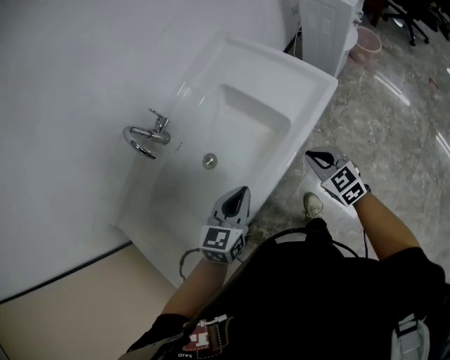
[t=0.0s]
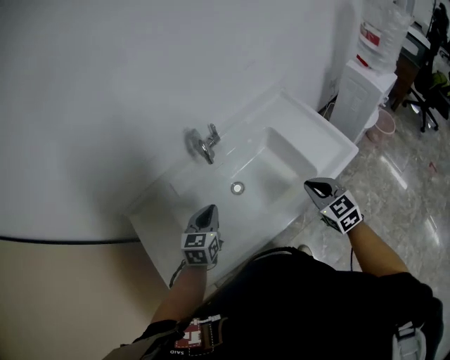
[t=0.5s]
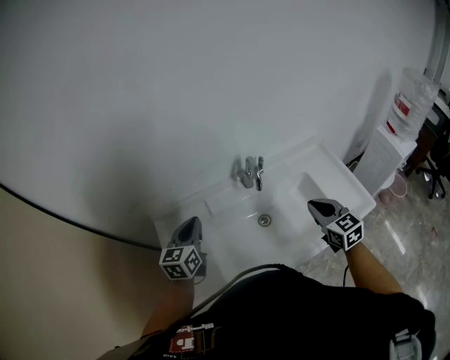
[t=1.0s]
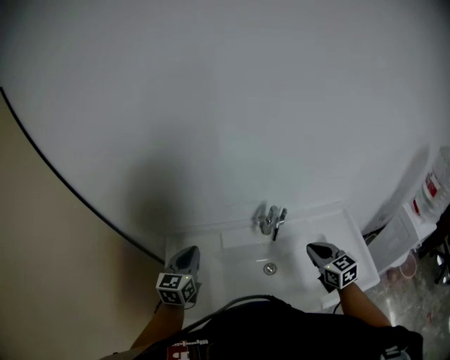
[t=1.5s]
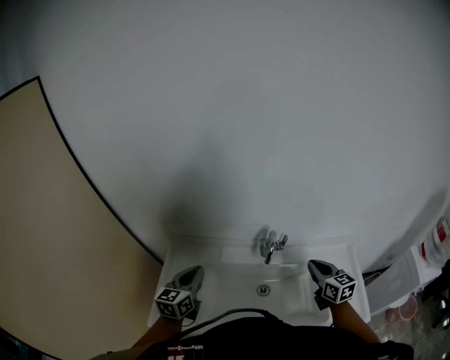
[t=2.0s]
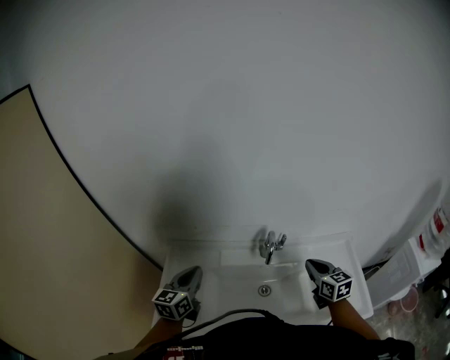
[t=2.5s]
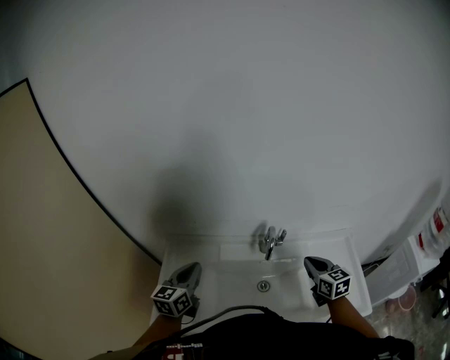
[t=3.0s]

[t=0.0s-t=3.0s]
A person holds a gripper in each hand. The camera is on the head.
t=0.0s to t=1.5s: The right gripper moves roughly 40 cm, and turns by approximately 30 degrees. The left gripper shifts by approximately 50 cm, and changes its angle by roughly 50 degrees.
t=1.5s to t=3.0s: The right gripper shifts by approximately 5 cm.

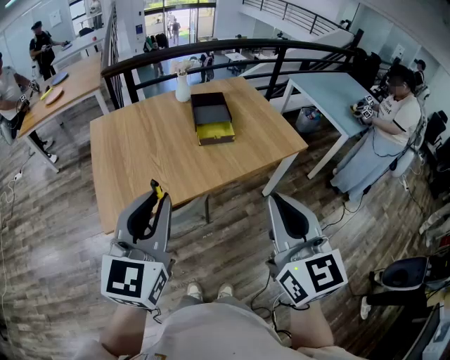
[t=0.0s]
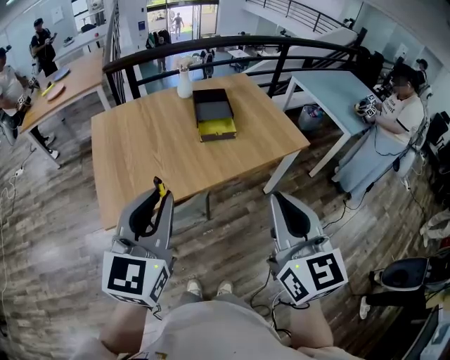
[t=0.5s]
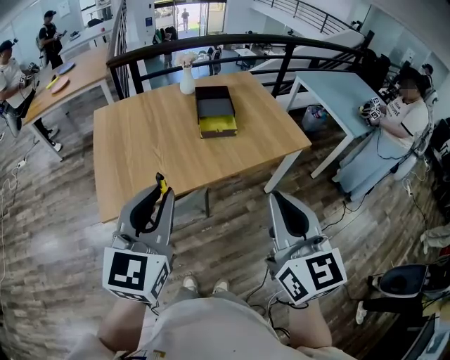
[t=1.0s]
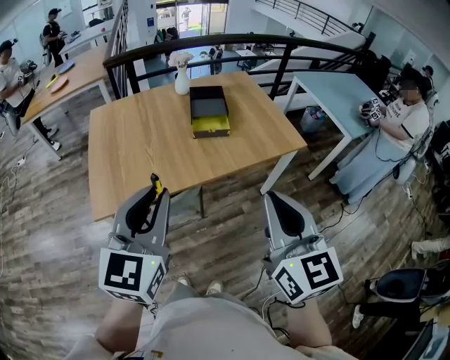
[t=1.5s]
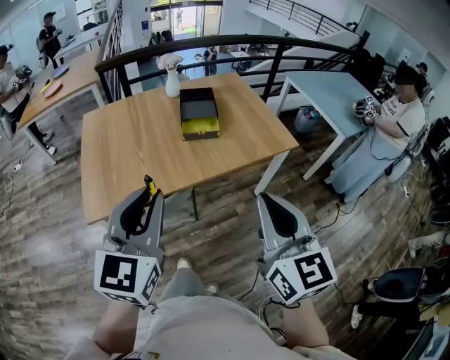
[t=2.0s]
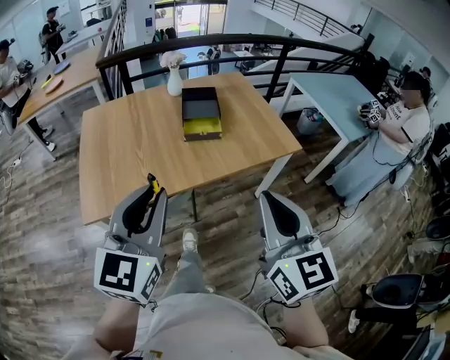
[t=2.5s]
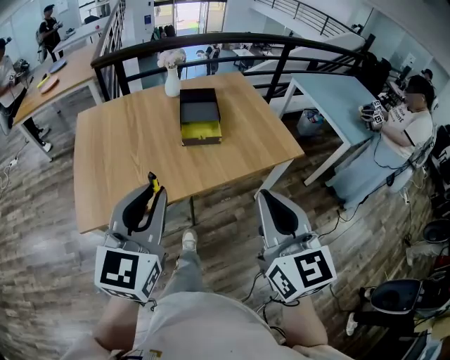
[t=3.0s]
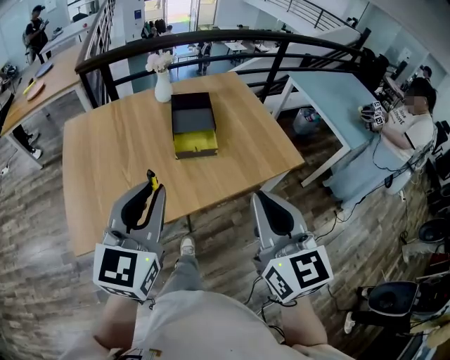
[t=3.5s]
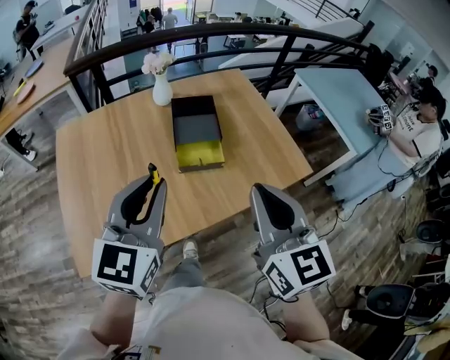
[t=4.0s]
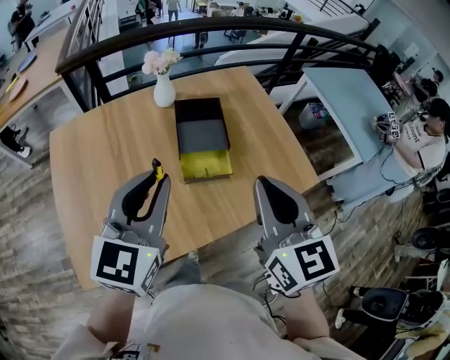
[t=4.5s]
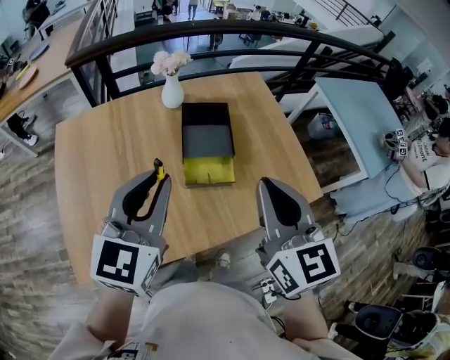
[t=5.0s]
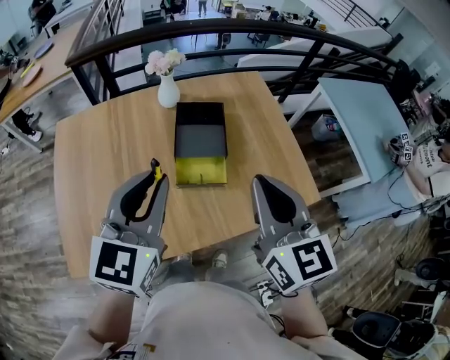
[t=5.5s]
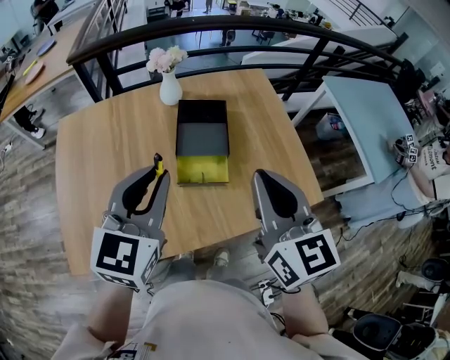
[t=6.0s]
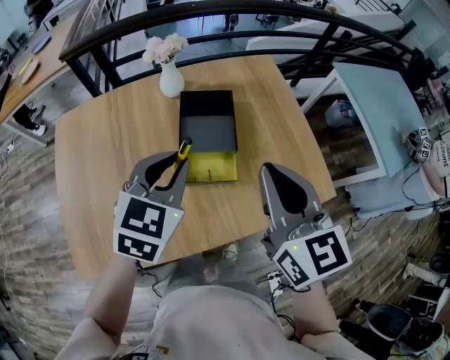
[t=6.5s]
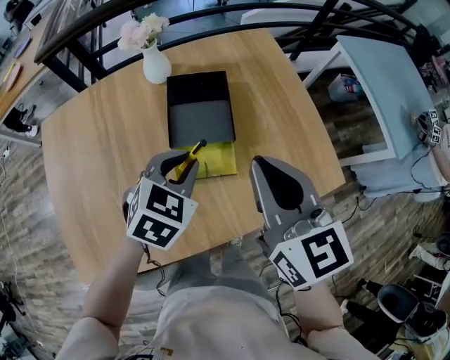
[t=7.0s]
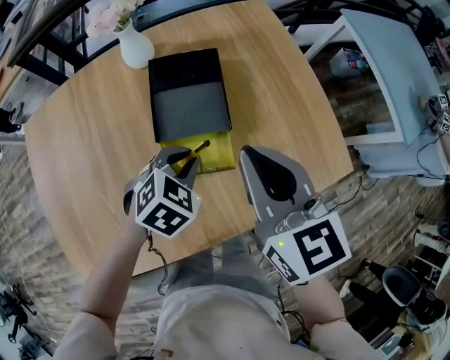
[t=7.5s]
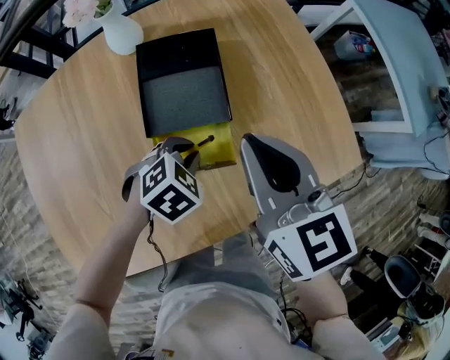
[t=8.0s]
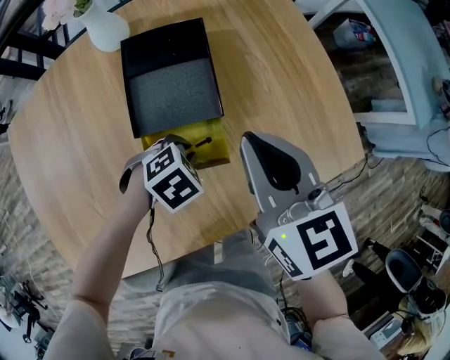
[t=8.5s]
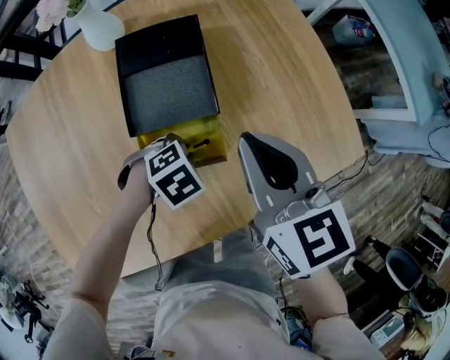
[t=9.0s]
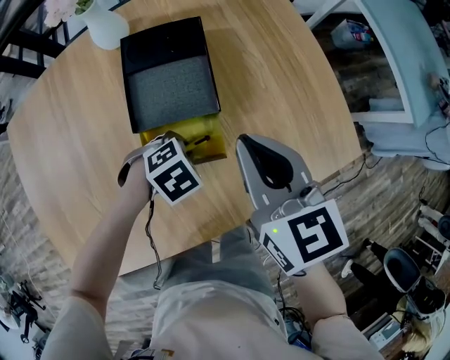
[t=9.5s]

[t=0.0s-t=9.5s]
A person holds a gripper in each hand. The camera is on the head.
t=0.0s to t=2.0s: The grippers both shift to the right by about 10 cm.
t=2.0s to t=4.0s: The two grippers go some 35 cm forward.
t=4.0s to t=5.5s: Both grippers move forward, roughly 15 cm.
t=5.5s to t=7.5s: The left gripper is displaced downward and forward by approximately 35 cm, and points its fingers roughly 50 degrees further downward, while the right gripper shifts about 25 cm downward and forward.
t=7.5s to t=9.5s: The two grippers go approximately 10 cm downward. The left gripper turns by roughly 30 degrees.

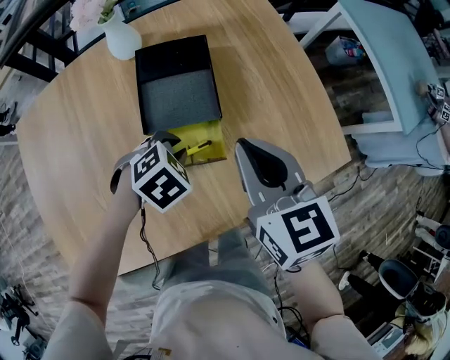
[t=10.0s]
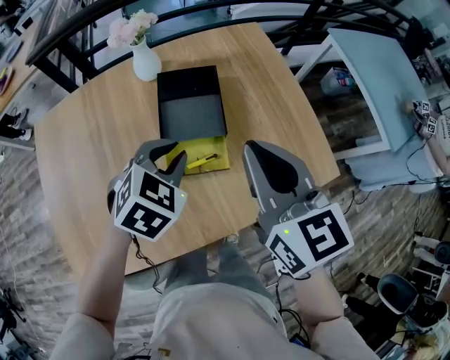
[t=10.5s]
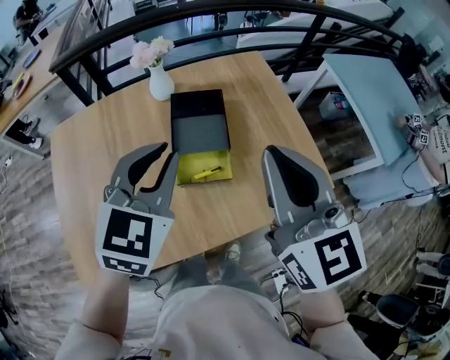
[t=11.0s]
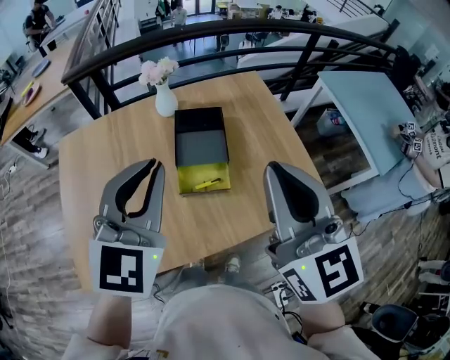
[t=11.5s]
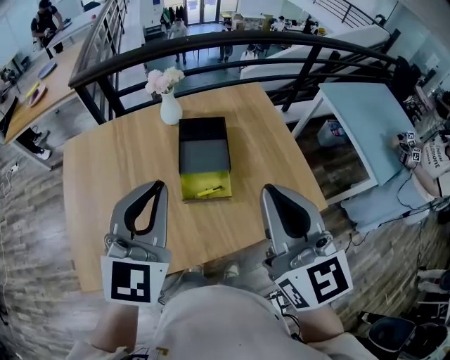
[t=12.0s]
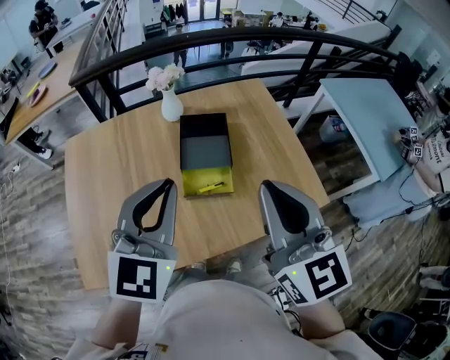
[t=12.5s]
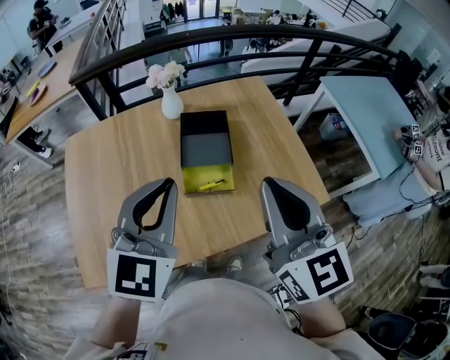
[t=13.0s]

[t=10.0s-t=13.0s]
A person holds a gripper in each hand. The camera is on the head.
t=10.0s to t=11.5s: The left gripper moves upward, roughly 40 cm, and tilts its fingers roughly 60 degrees upward; the right gripper is displaced upward and backward by some 30 cm, and swivels about 30 degrees.
t=11.5s to t=13.0s: The grippers stay close to where they were, moving slightly.

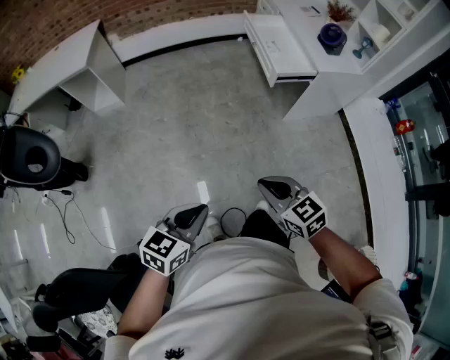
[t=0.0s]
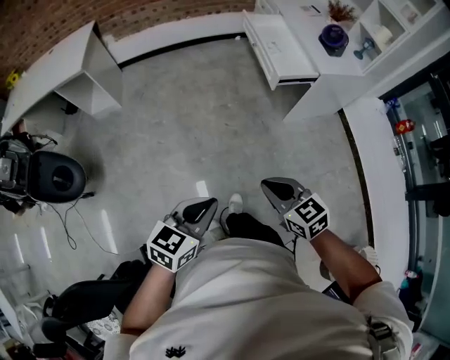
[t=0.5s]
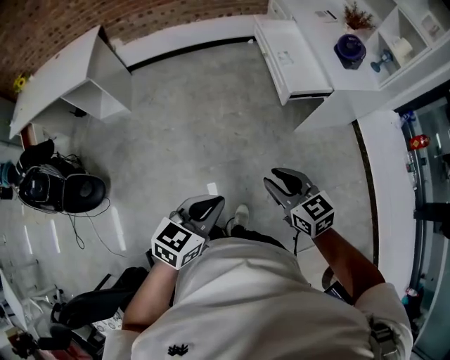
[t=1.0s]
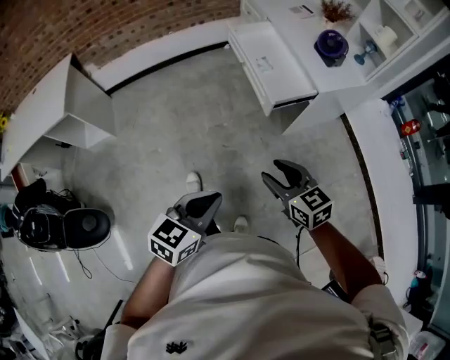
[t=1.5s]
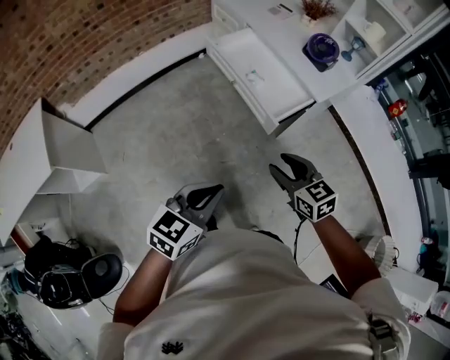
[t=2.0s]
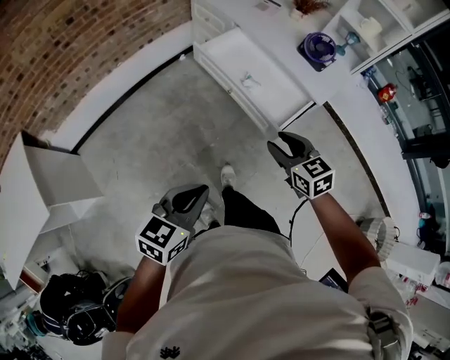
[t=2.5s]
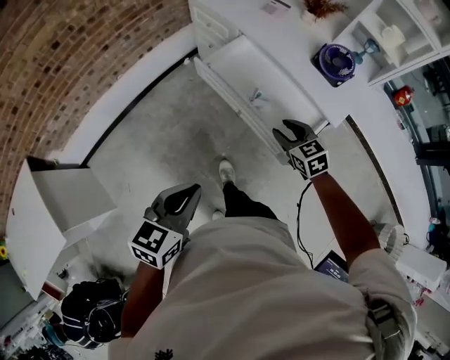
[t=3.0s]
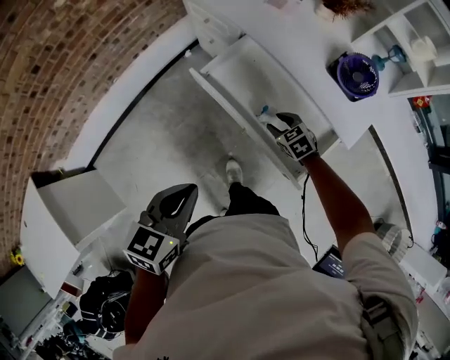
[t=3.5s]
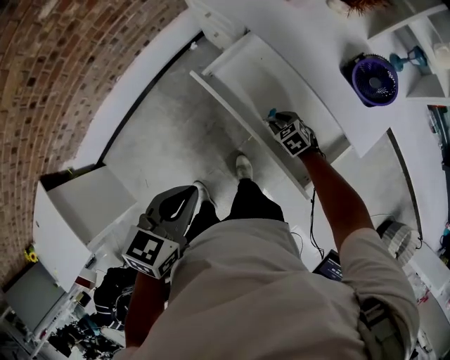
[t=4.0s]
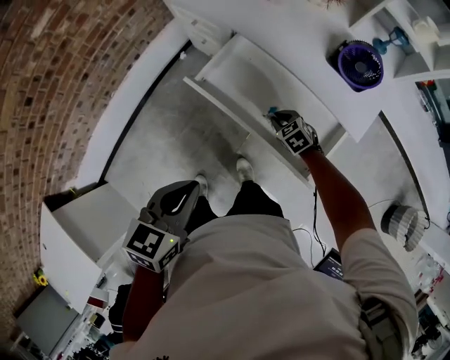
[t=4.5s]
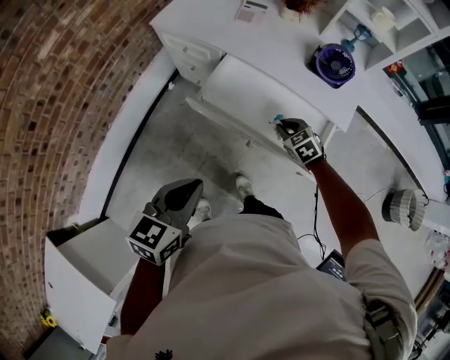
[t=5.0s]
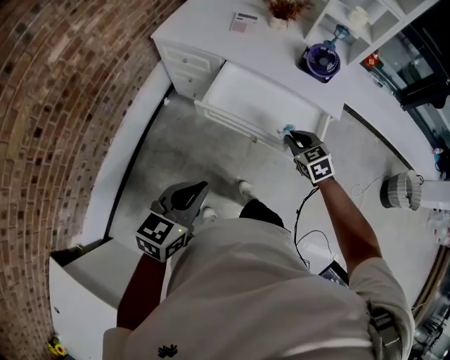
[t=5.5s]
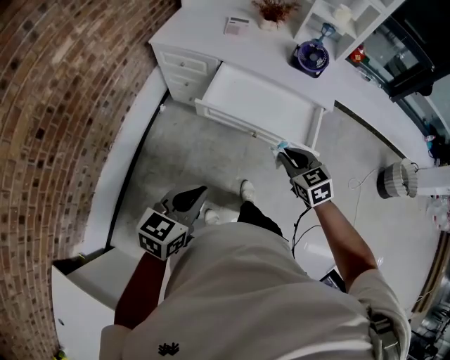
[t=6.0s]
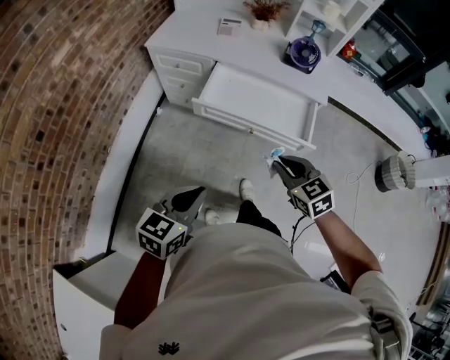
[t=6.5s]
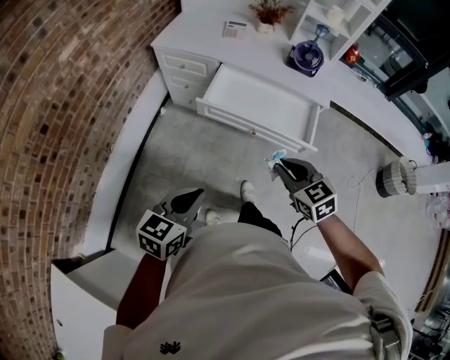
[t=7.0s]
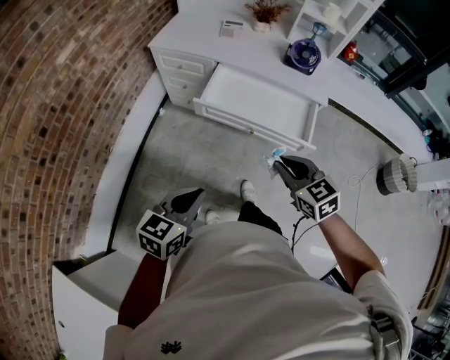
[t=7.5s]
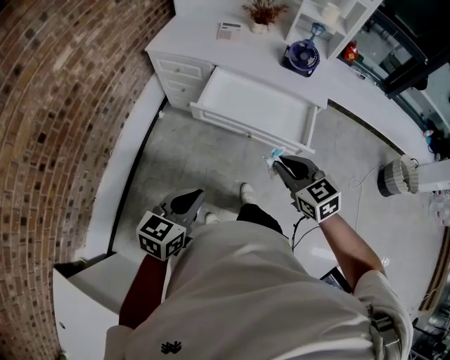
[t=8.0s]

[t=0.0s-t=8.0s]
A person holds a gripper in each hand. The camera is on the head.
t=0.0s to t=2.0s: The pair of grippers is taken roughly 40 cm. The left gripper rotates roughly 30 degrees; the right gripper rotates about 30 degrees, and opens up.
t=2.0s to t=4.0s: Both grippers are carried forward, roughly 50 cm. The right gripper moves downward, some 30 cm, and rotates some 30 degrees.
t=4.0s to t=6.0s: The right gripper shifts some 30 cm upward, rotates roughly 40 degrees, and closes up, while the left gripper changes place by some 20 cm, and turns by approximately 30 degrees.
t=6.0s to t=8.0s: The right gripper is displaced upward and backward by about 10 cm.

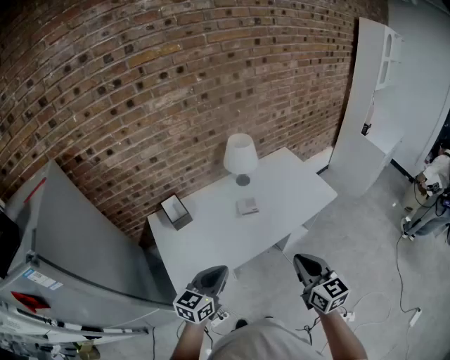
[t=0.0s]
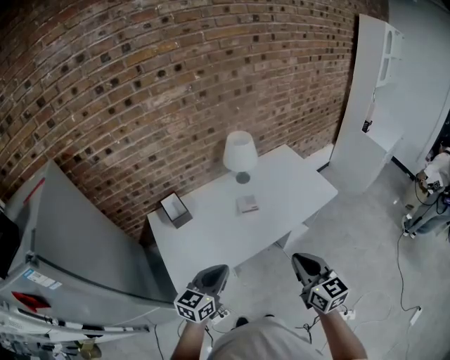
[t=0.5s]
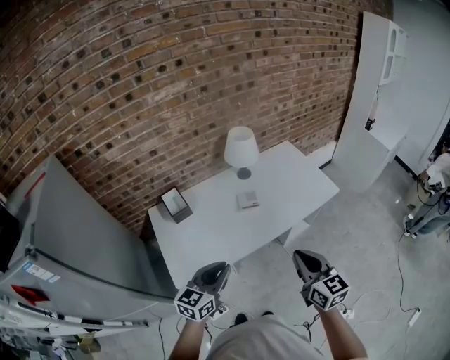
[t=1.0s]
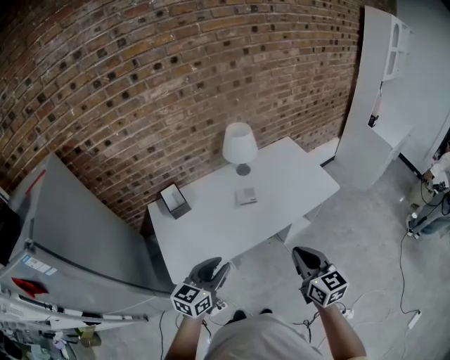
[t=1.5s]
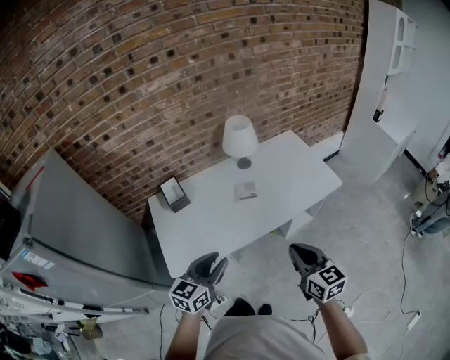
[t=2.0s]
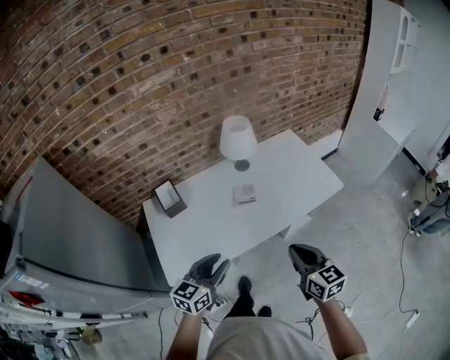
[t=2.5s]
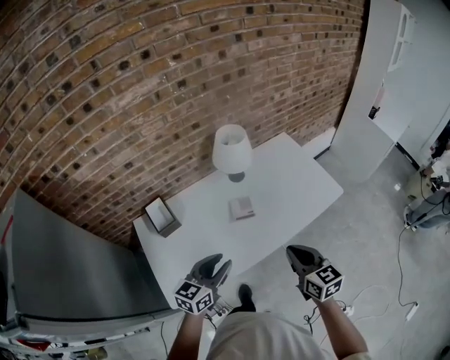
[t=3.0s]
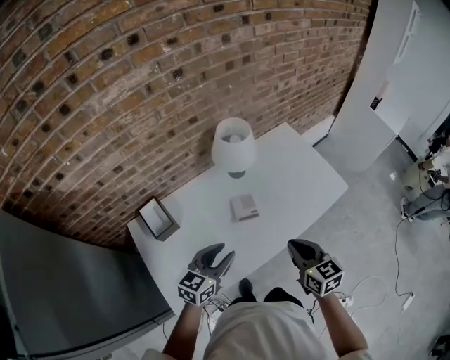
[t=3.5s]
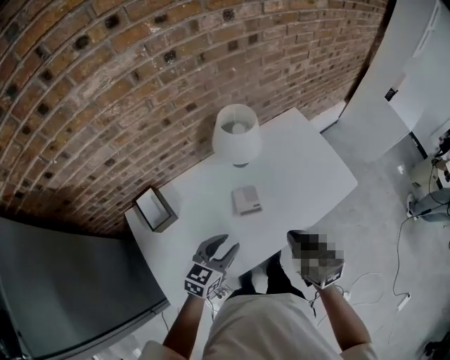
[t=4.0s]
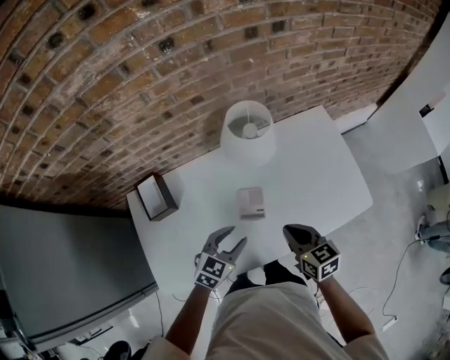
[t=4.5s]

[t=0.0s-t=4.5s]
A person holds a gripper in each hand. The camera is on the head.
t=0.0s to t=2.0s: The grippers both shift to the right by roughly 5 cm. The left gripper opens up.
t=2.0s to t=4.5s: The two grippers go about 40 cm forward and downward. The left gripper swivels roughly 20 degrees. Meanwhile the right gripper rotates approximately 20 degrees.
